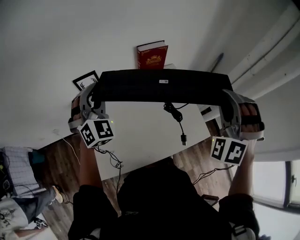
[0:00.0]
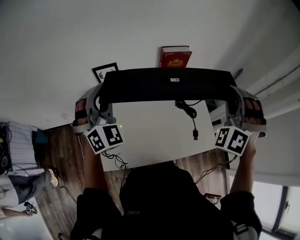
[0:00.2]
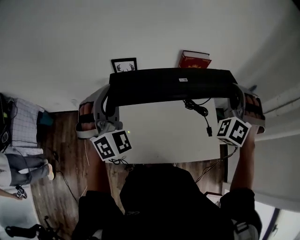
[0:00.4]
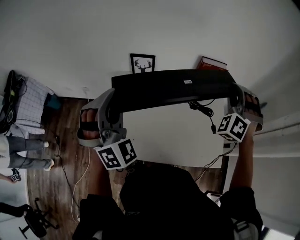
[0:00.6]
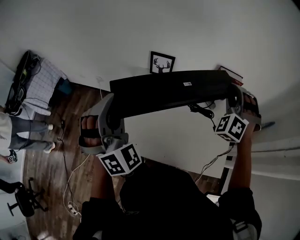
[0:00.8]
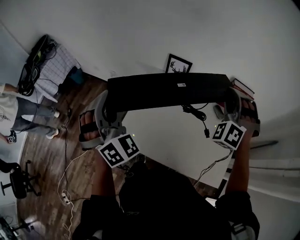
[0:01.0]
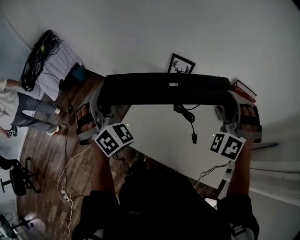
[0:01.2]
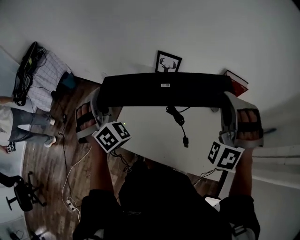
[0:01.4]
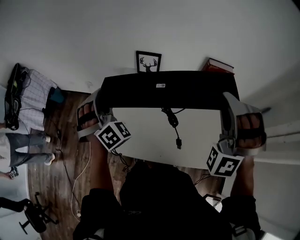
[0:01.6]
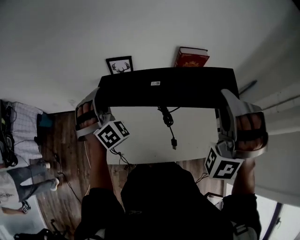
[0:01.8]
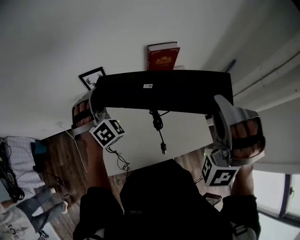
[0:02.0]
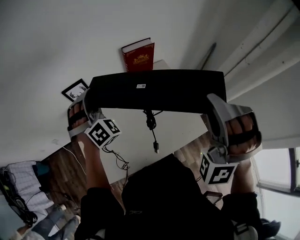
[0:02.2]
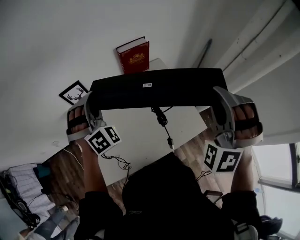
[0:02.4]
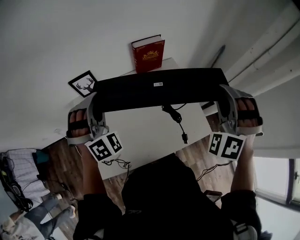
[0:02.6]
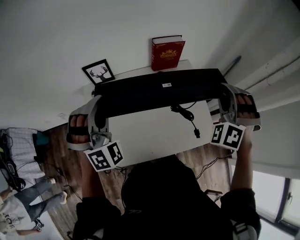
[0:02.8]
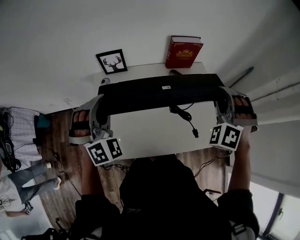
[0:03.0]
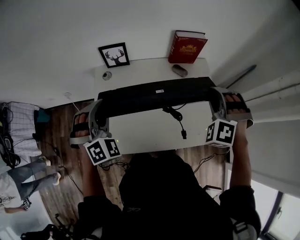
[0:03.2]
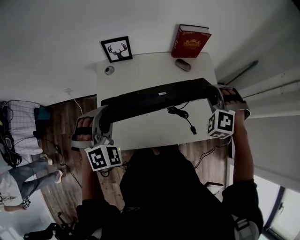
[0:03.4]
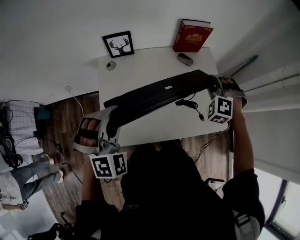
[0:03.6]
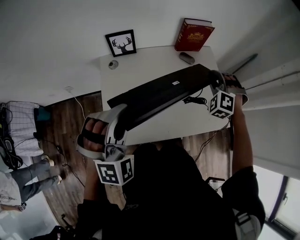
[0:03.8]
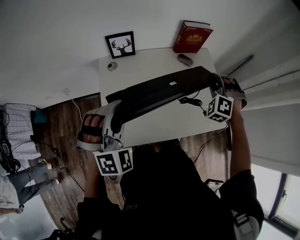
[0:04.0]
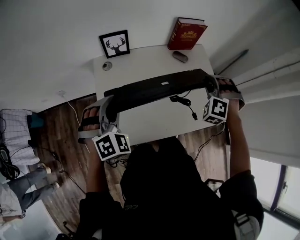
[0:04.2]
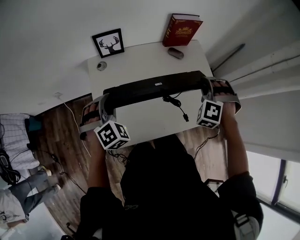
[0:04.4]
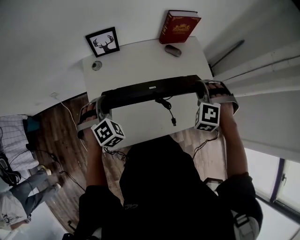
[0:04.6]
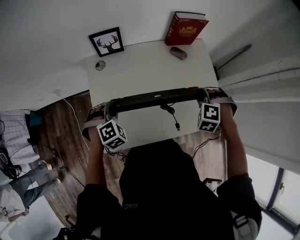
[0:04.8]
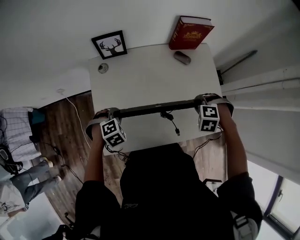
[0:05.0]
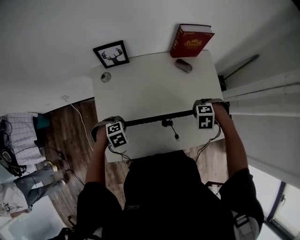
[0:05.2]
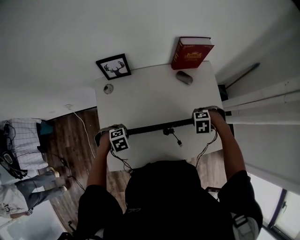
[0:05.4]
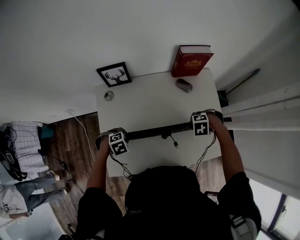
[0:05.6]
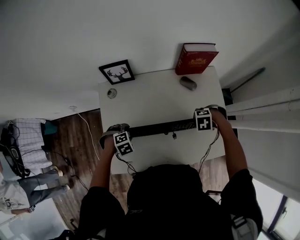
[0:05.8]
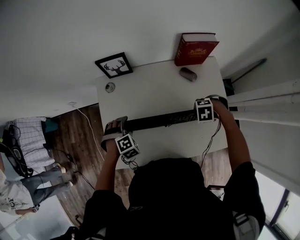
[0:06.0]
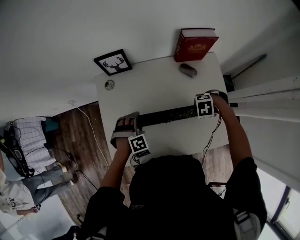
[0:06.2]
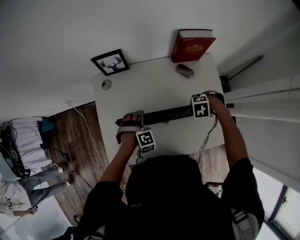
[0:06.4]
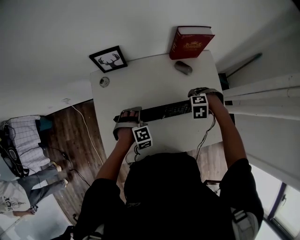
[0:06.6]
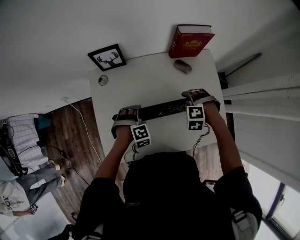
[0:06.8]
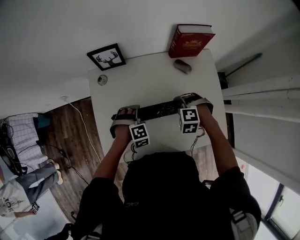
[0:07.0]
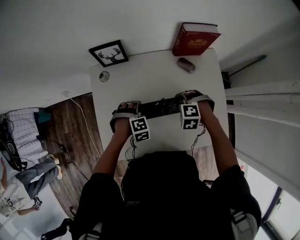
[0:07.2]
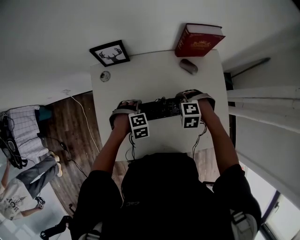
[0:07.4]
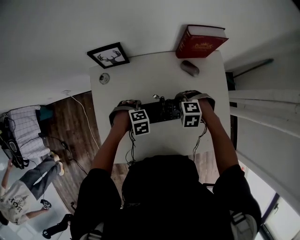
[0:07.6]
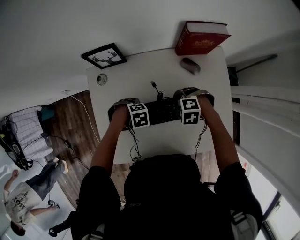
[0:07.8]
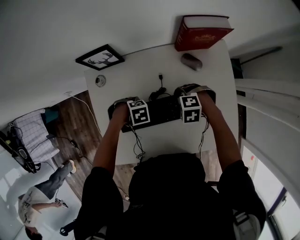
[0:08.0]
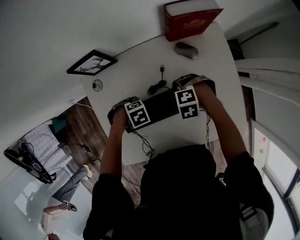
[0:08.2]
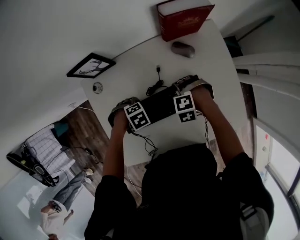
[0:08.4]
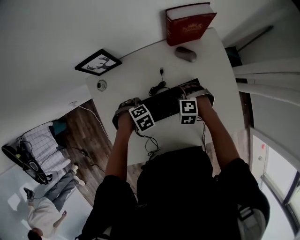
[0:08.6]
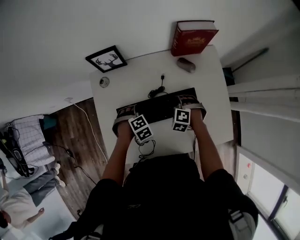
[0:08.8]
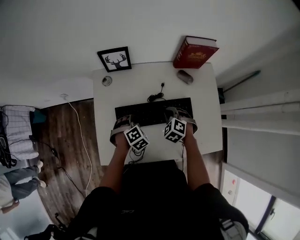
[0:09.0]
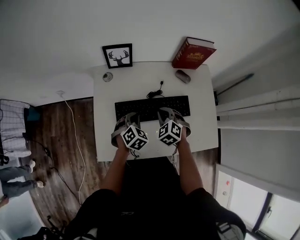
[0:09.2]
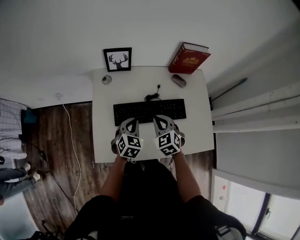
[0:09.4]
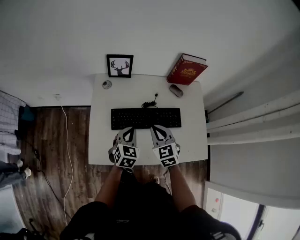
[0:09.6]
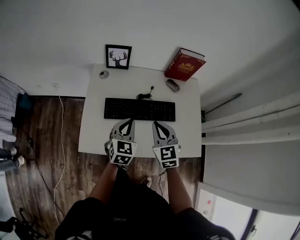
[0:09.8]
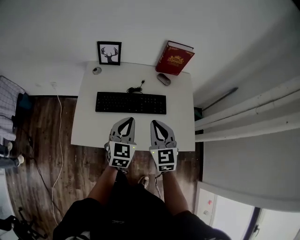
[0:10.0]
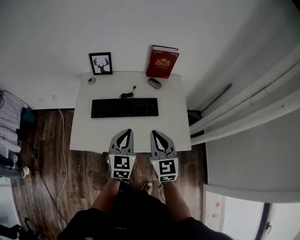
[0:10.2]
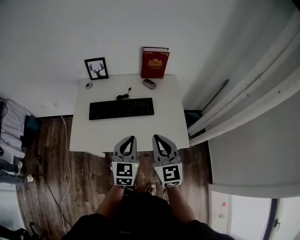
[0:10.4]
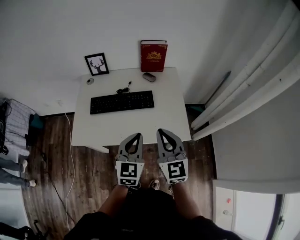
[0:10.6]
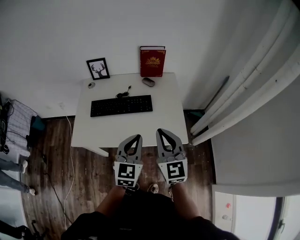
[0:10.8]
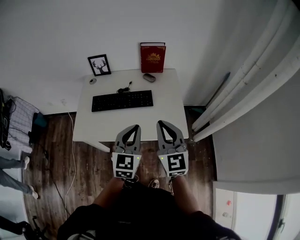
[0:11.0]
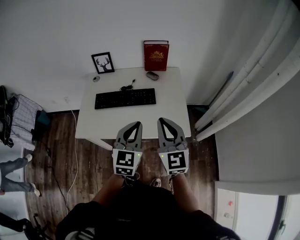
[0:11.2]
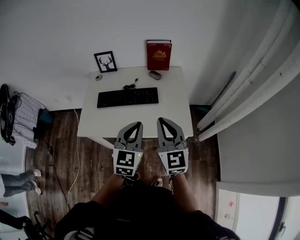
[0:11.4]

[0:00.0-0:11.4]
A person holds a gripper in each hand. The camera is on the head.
0:00.0 to 0:01.4: The right gripper moves some 25 cm, and rotates roughly 40 degrees; the left gripper moves roughly 30 cm, and swivels about 60 degrees.
0:01.4 to 0:02.8: The left gripper ends up roughly 25 cm from where it was, and rotates approximately 50 degrees; the right gripper moves roughly 25 cm, and turns by approximately 40 degrees.
0:02.8 to 0:04.2: The right gripper travels downward and to the left by about 20 cm. Meanwhile the left gripper moves downward, to the left and backward, approximately 20 cm, and rotates about 20 degrees.
0:04.2 to 0:05.6: The grippers both shift downward by some 20 cm. The left gripper tilts its fingers roughly 50 degrees downward. The right gripper angles its fingers downward, by roughly 40 degrees.
0:05.6 to 0:07.2: The right gripper moves approximately 10 cm, turns by some 20 degrees, and opens, then closes once more. Meanwhile the left gripper changes place by roughly 10 cm, changes its angle by roughly 20 degrees, and opens its fingers.
0:07.2 to 0:08.6: The right gripper travels downward by roughly 5 cm. Meanwhile the left gripper changes its angle by roughly 20 degrees.
0:08.6 to 0:10.0: Both grippers move upward, roughly 25 cm. The left gripper tips its fingers upward by approximately 70 degrees, and closes its fingers, while the right gripper tilts its fingers about 50 degrees upward.
0:10.0 to 0:11.4: The two grippers go about 20 cm backward, to the right and upward.

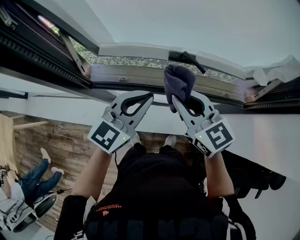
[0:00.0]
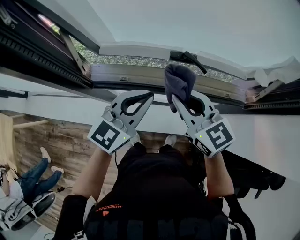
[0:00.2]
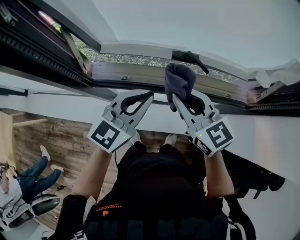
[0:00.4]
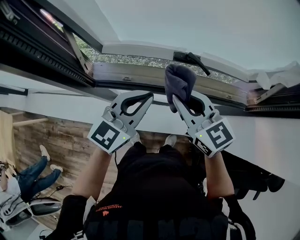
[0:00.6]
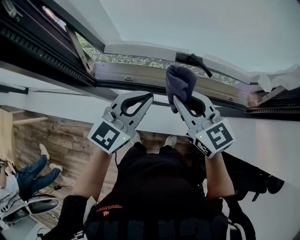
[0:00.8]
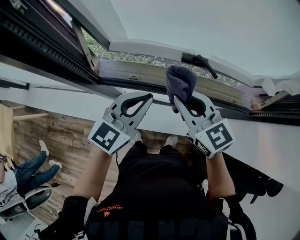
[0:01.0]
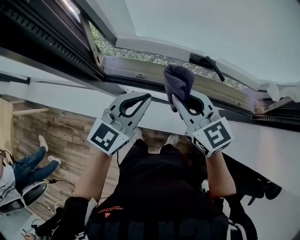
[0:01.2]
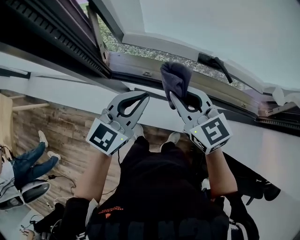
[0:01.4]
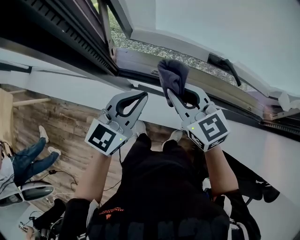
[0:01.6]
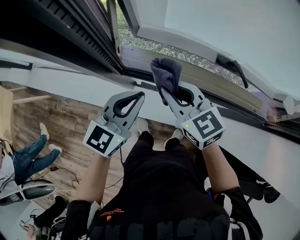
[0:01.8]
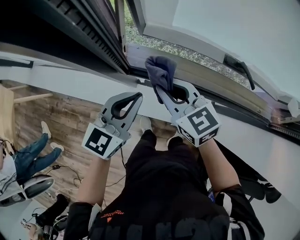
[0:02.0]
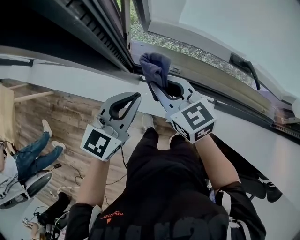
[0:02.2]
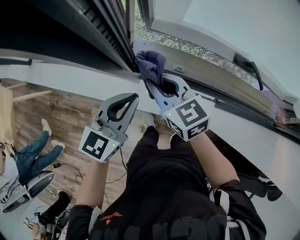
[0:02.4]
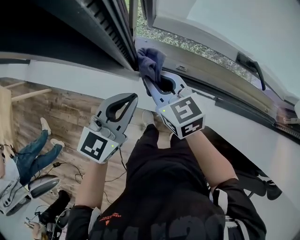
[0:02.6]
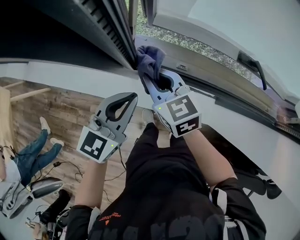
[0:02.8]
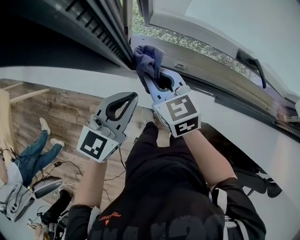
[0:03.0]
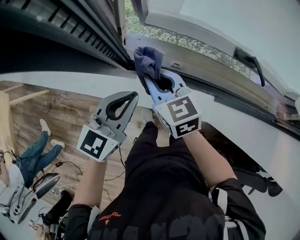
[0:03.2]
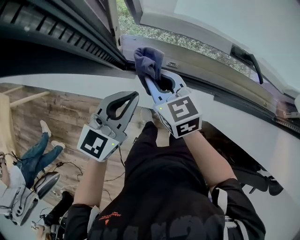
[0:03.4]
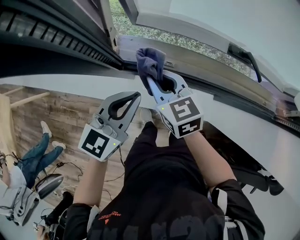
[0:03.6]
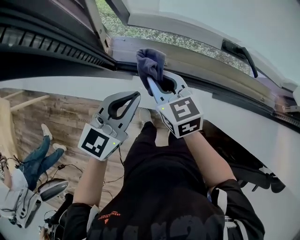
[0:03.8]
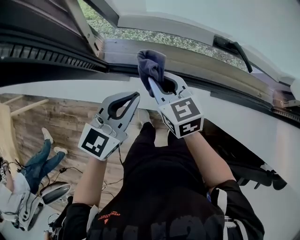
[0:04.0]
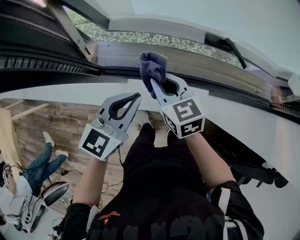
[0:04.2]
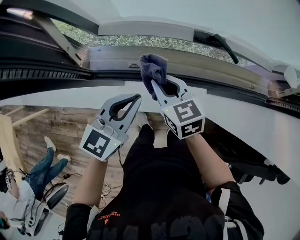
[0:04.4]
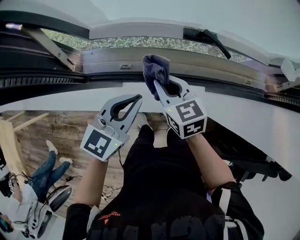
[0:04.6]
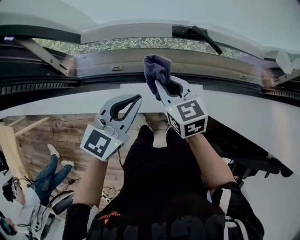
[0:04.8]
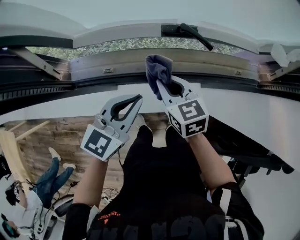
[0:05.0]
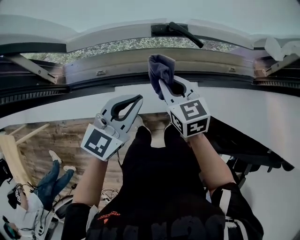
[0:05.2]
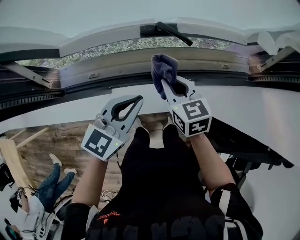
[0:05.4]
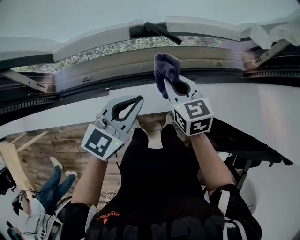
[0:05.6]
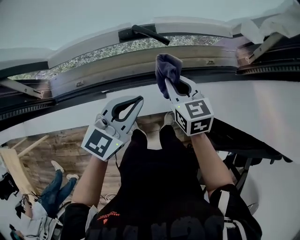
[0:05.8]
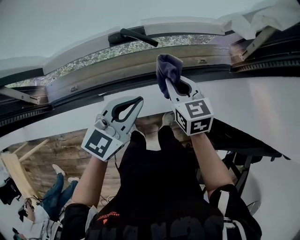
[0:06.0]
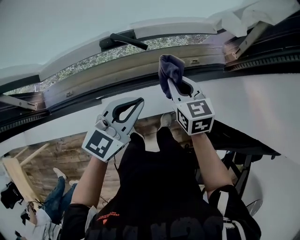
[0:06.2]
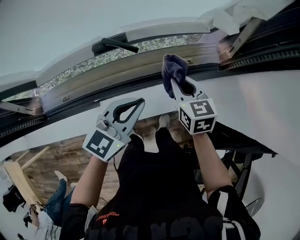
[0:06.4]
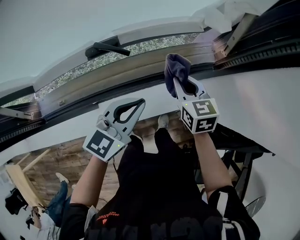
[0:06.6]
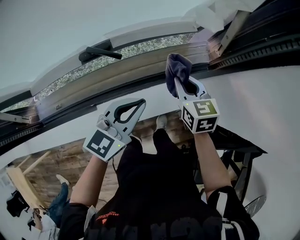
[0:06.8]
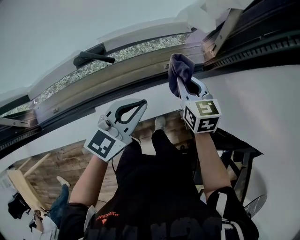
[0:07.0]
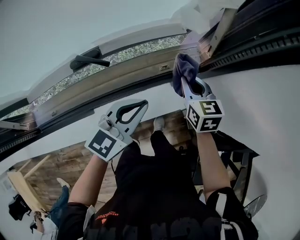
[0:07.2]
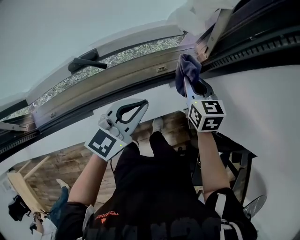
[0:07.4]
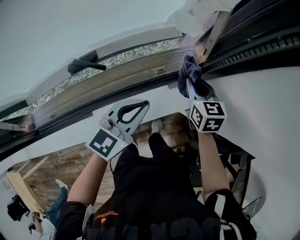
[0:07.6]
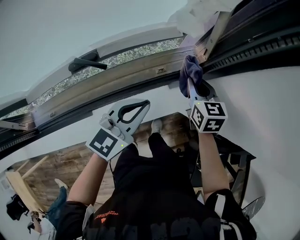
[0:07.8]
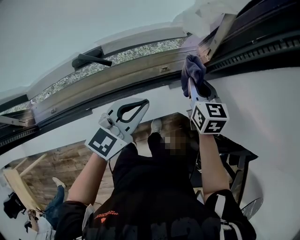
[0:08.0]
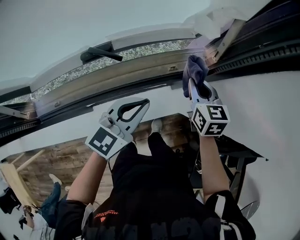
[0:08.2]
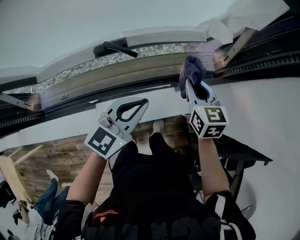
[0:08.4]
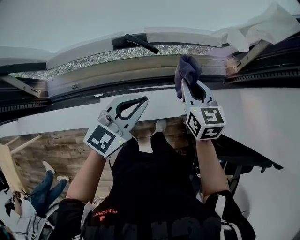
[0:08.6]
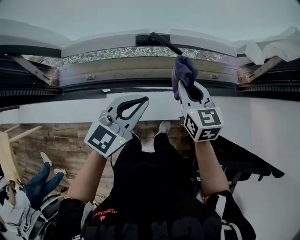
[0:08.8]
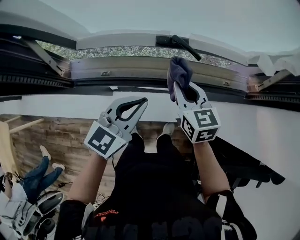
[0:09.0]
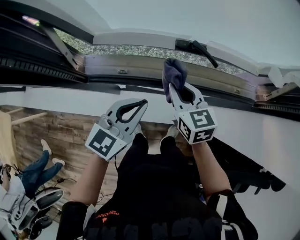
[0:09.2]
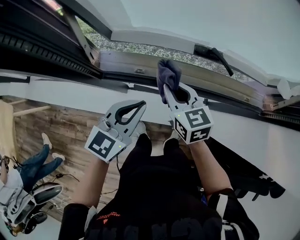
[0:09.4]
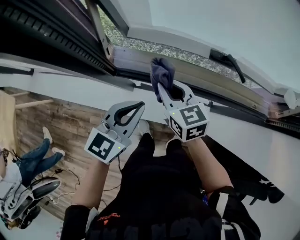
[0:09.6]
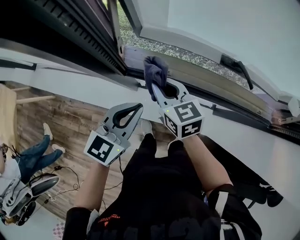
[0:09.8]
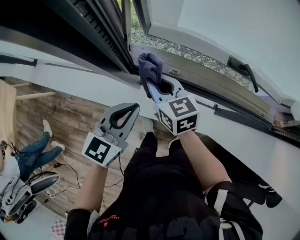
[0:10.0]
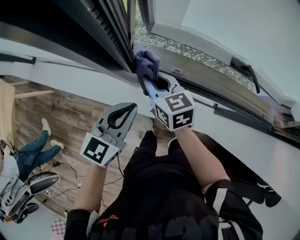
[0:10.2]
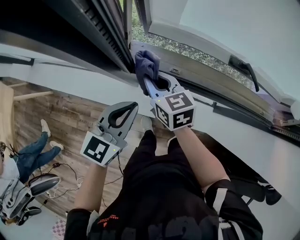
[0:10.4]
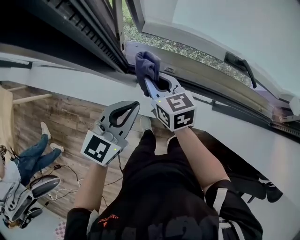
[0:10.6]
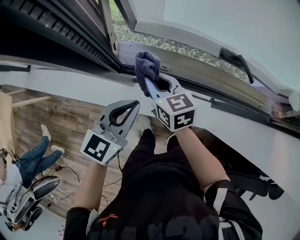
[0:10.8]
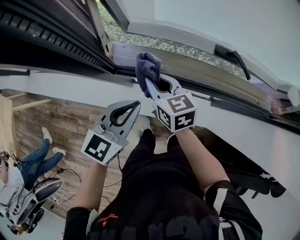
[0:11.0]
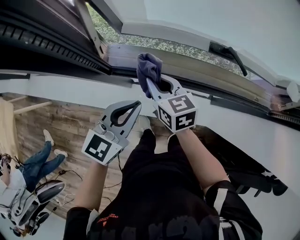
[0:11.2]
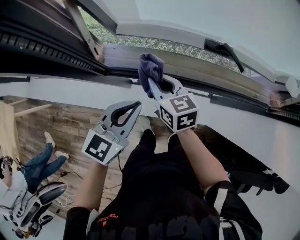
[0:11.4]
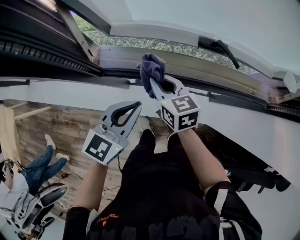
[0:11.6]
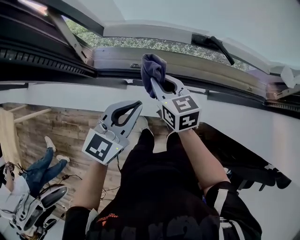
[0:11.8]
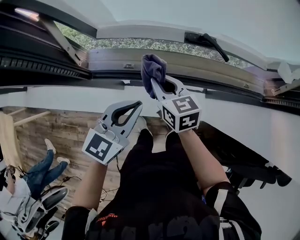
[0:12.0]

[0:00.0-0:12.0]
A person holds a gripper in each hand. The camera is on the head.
0:00.0 to 0:01.6: The two grippers go some 15 cm to the left and downward.
0:01.6 to 0:03.0: Both grippers travel together to the left and downward, about 15 cm.
0:03.0 to 0:04.4: Both grippers move to the right, some 15 cm.
0:04.4 to 0:06.0: Both grippers move to the right, approximately 25 cm. The right gripper changes its angle by approximately 20 degrees.
0:06.0 to 0:07.6: The two grippers go some 20 cm to the right and forward.
0:07.6 to 0:09.0: The right gripper moves about 35 cm, and swivels approximately 30 degrees; the left gripper changes place by roughly 25 cm, and turns by some 20 degrees.
0:09.0 to 0:10.4: Both grippers move to the left, some 30 cm. The right gripper rotates about 20 degrees.
0:10.4 to 0:12.0: Both grippers travel together to the right, about 15 cm.
